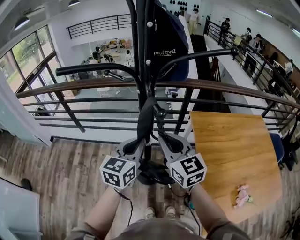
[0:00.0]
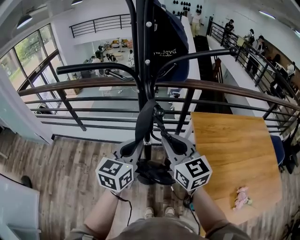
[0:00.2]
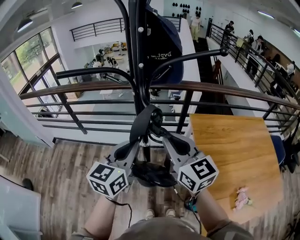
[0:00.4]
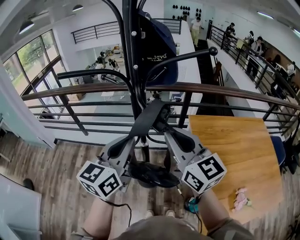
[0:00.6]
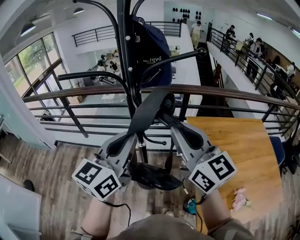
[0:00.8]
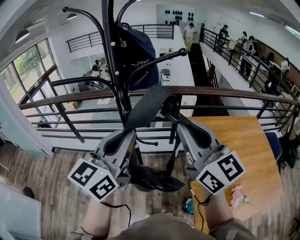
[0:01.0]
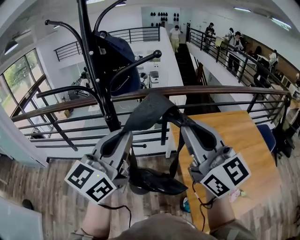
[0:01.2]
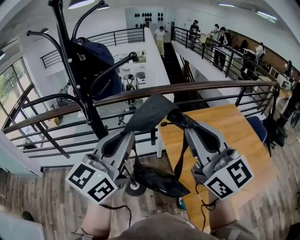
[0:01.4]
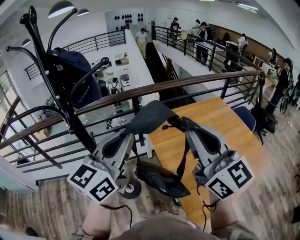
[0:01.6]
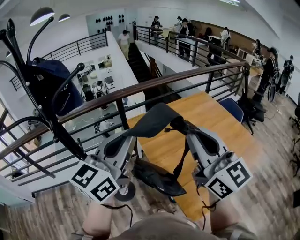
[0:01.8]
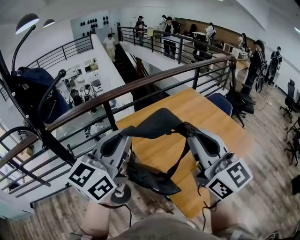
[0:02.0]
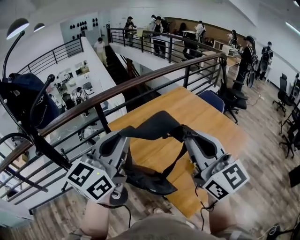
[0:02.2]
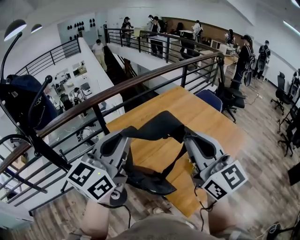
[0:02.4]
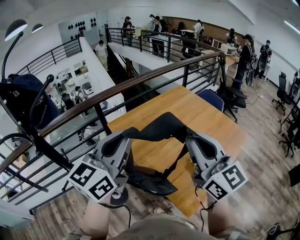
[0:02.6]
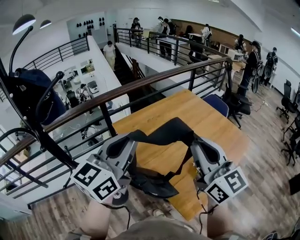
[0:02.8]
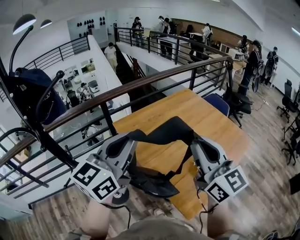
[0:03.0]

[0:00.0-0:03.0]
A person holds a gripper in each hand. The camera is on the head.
0:00.0 to 0:01.6: The right gripper moves to the right, upward and backward, roughly 35 cm, and swivels approximately 30 degrees. The left gripper shifts some 25 cm upward, to the right and backward, and swivels some 30 degrees.
0:01.6 to 0:03.0: The left gripper moves to the right, about 10 cm. The right gripper travels to the right and downward by roughly 10 cm.

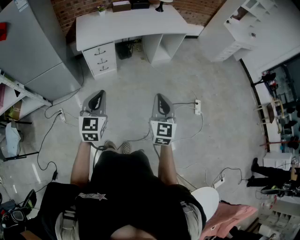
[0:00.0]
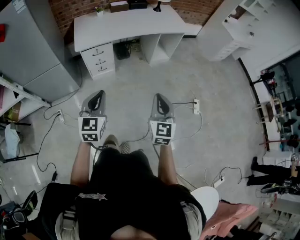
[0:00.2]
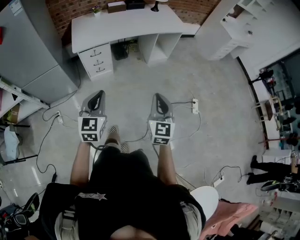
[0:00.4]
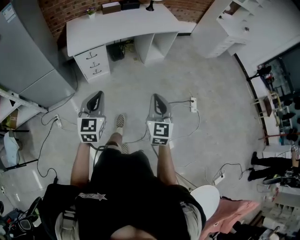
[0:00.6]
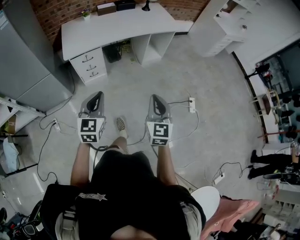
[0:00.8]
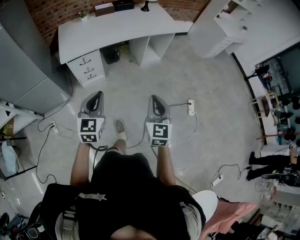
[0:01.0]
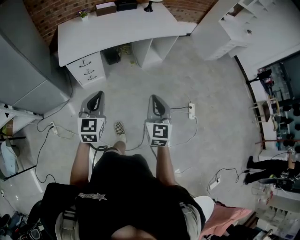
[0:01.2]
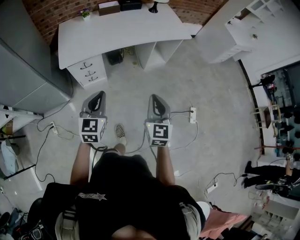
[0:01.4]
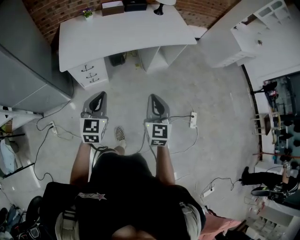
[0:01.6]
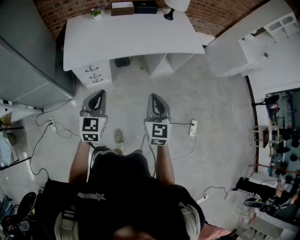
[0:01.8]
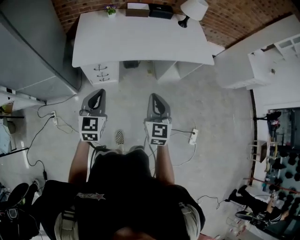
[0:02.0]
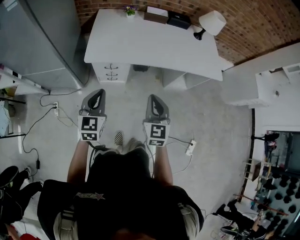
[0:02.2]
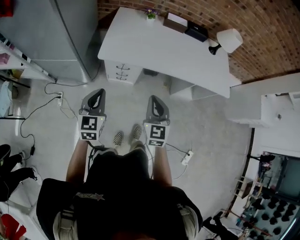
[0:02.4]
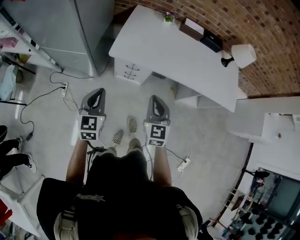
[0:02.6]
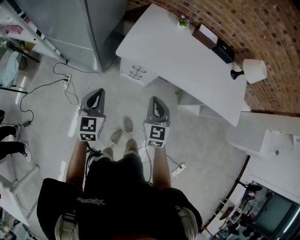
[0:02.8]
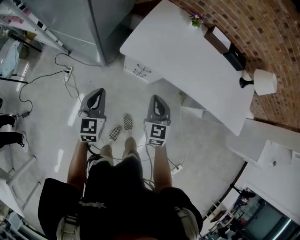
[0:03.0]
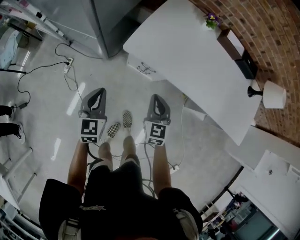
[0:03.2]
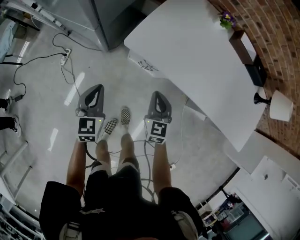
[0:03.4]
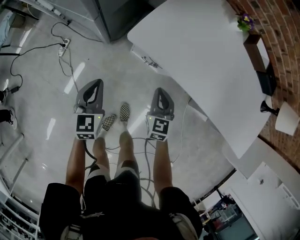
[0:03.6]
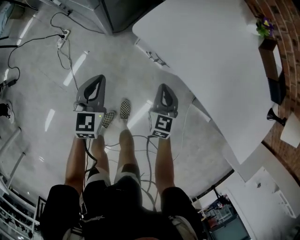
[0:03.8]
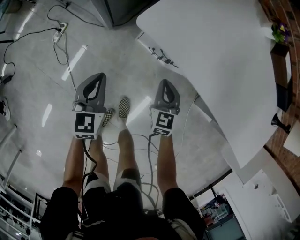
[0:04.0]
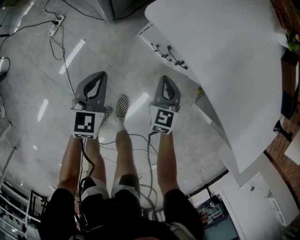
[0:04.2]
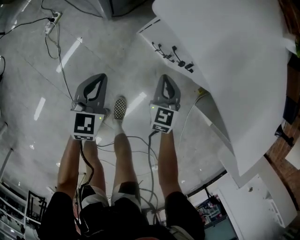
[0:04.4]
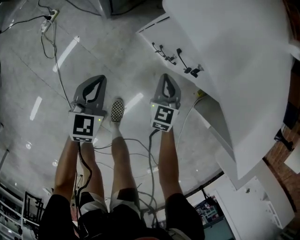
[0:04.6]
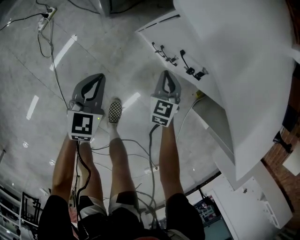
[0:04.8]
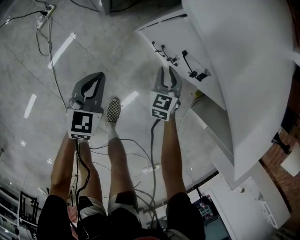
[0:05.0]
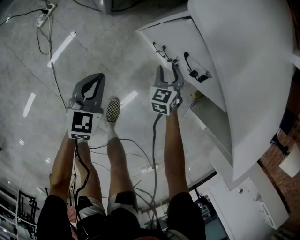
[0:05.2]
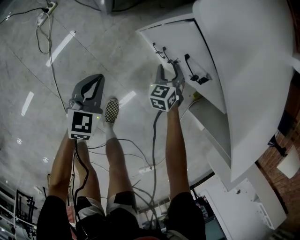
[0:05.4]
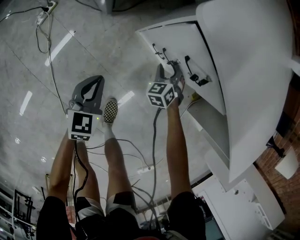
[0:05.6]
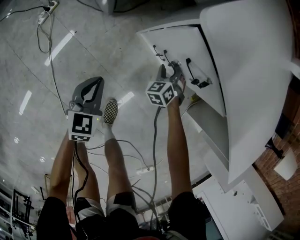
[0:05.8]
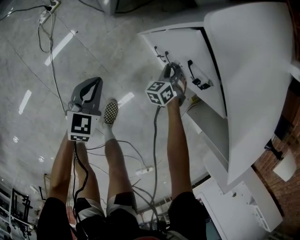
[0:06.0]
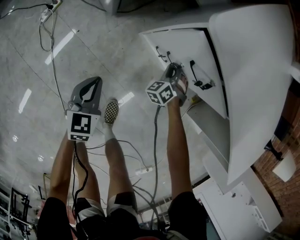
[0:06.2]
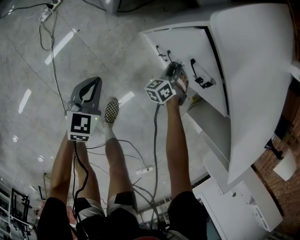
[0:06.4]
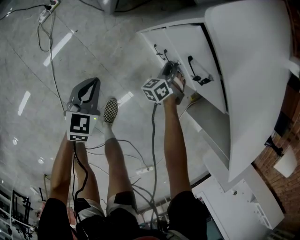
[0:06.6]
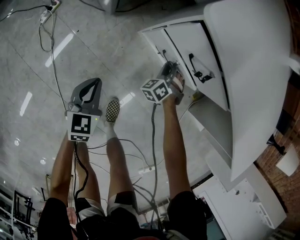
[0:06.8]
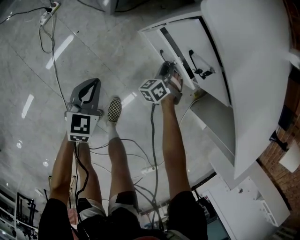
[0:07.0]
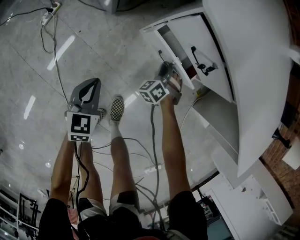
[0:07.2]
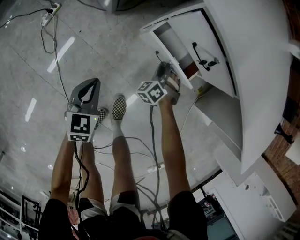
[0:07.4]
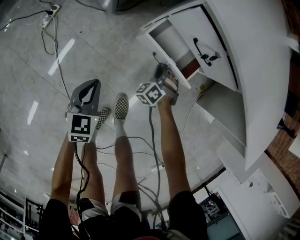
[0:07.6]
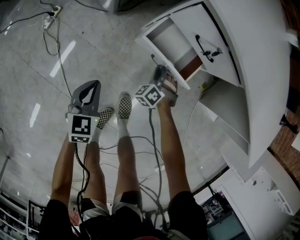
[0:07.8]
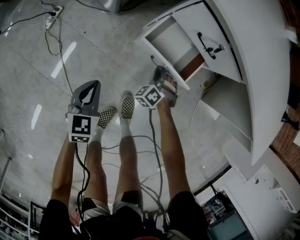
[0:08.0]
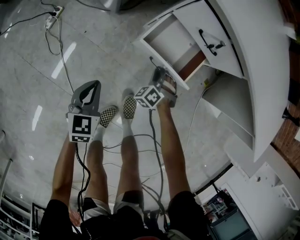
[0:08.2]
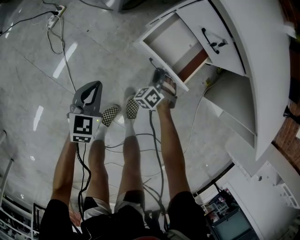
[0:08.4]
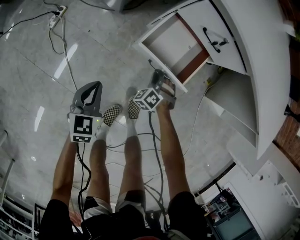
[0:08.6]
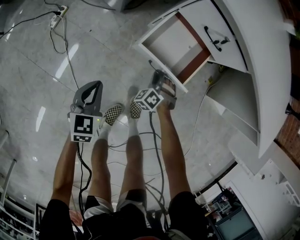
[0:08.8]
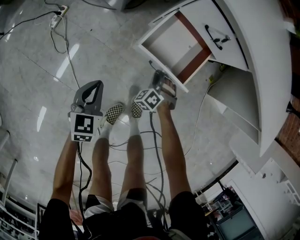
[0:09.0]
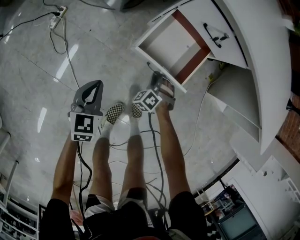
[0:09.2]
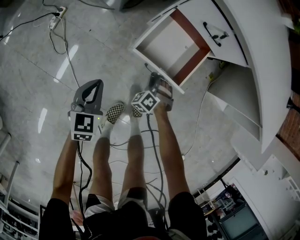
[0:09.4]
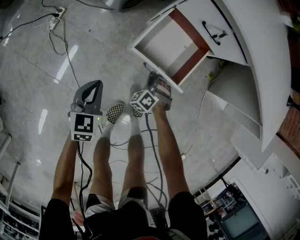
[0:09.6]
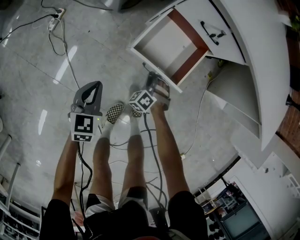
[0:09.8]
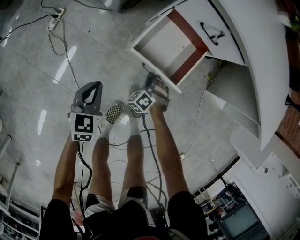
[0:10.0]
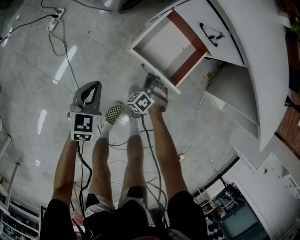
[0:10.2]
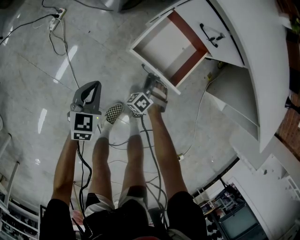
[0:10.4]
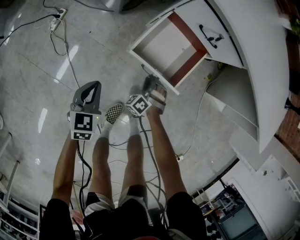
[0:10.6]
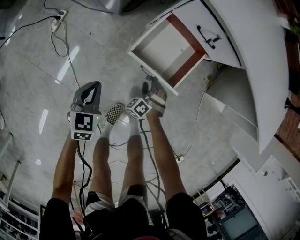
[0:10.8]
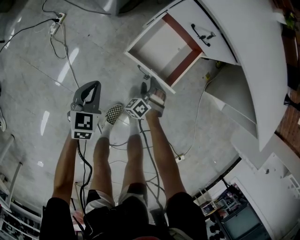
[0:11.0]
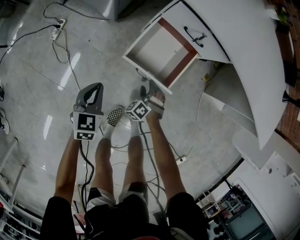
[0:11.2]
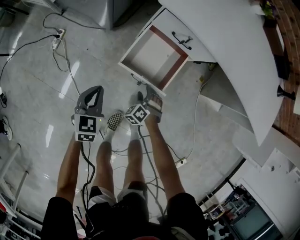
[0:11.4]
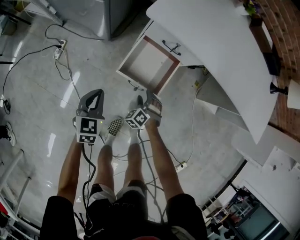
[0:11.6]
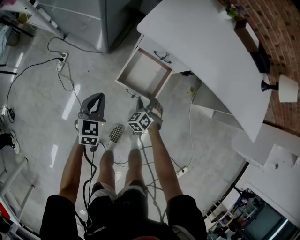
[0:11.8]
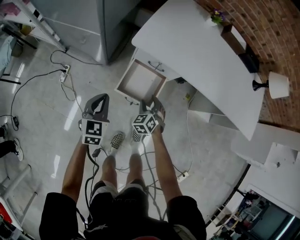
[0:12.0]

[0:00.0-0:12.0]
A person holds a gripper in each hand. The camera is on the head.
0:00.0 to 0:01.6: Both grippers travel together forward, roughly 30 cm.
0:01.6 to 0:03.0: The right gripper moves approximately 40 cm, and swivels approximately 40 degrees, while the left gripper changes place by roughly 30 cm, and rotates roughly 40 degrees.
0:03.0 to 0:04.4: Both grippers travel together downward, approximately 40 cm.
0:04.4 to 0:06.0: The left gripper moves downward, approximately 10 cm. Meanwhile the right gripper shifts some 20 cm downward and forward, rolls counterclockwise, seen from behind, by some 40 degrees, and opens, then closes once more.
0:06.0 to 0:07.6: The right gripper heads backward, covering roughly 10 cm. The left gripper heads backward, covering about 5 cm.
0:07.6 to 0:09.0: The left gripper heads backward, covering some 10 cm, while the right gripper moves backward, approximately 10 cm.
0:09.0 to 0:10.4: The grippers make only small movements.
0:10.4 to 0:12.0: Both grippers travel together upward, approximately 30 cm. The right gripper rotates about 30 degrees, and opens.

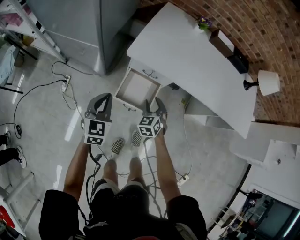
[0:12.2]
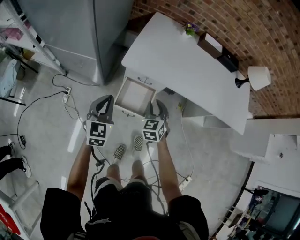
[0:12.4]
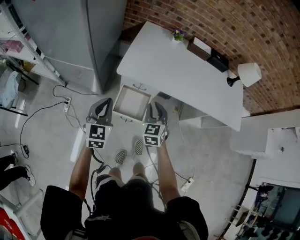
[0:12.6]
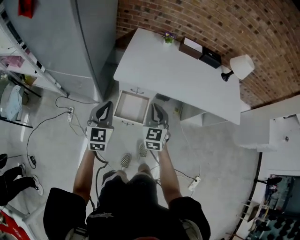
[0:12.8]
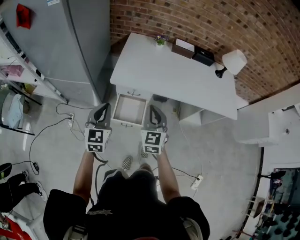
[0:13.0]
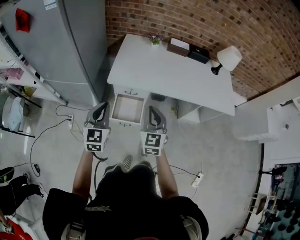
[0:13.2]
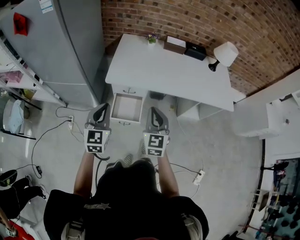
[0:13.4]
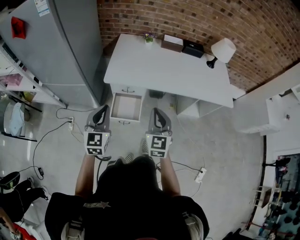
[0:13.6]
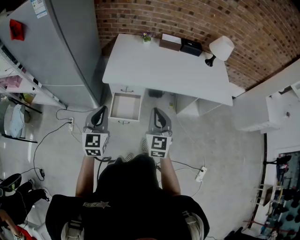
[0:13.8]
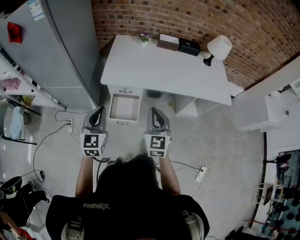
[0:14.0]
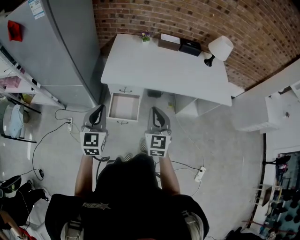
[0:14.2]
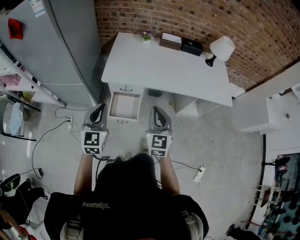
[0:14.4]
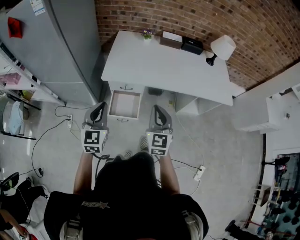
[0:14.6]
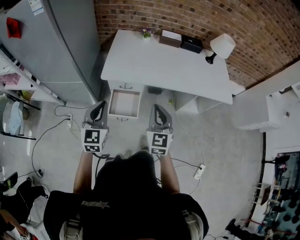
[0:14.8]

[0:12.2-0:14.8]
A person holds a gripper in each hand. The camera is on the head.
0:12.2 to 0:13.4: The left gripper heads upward and to the right, covering approximately 25 cm; the right gripper travels upward by roughly 30 cm, swivels some 40 degrees, and closes up.
0:13.4 to 0:14.8: The grippers make only small movements.

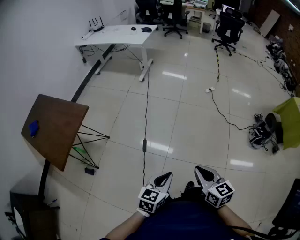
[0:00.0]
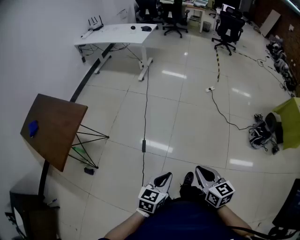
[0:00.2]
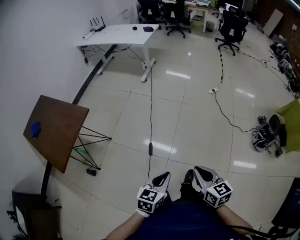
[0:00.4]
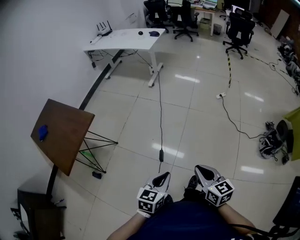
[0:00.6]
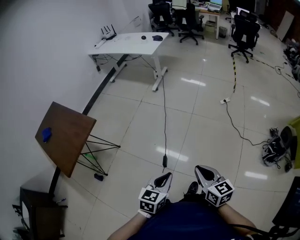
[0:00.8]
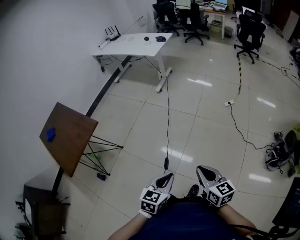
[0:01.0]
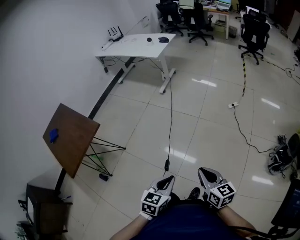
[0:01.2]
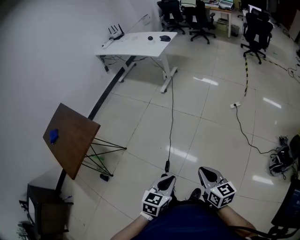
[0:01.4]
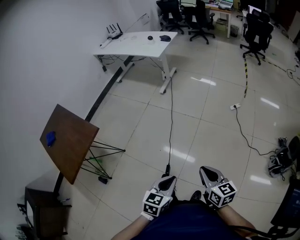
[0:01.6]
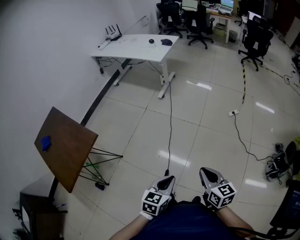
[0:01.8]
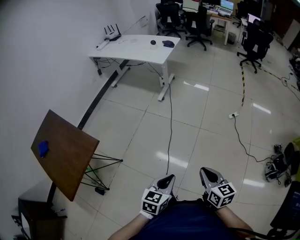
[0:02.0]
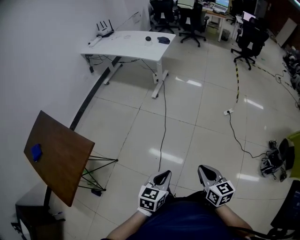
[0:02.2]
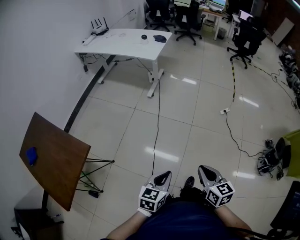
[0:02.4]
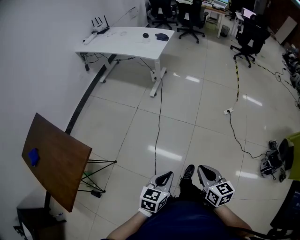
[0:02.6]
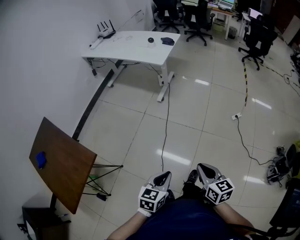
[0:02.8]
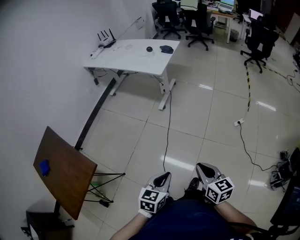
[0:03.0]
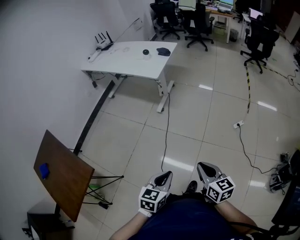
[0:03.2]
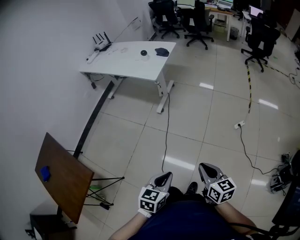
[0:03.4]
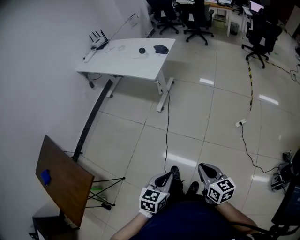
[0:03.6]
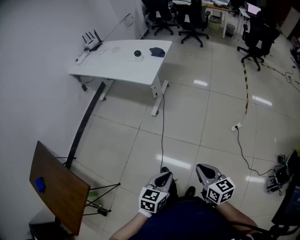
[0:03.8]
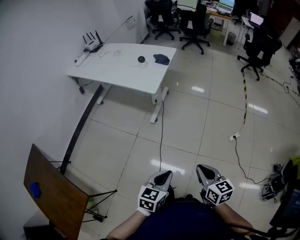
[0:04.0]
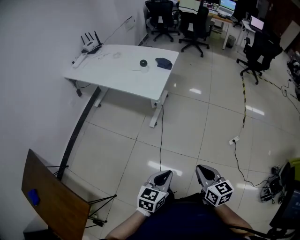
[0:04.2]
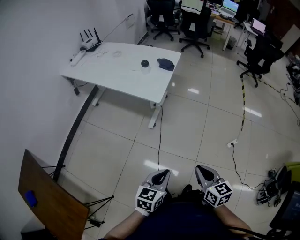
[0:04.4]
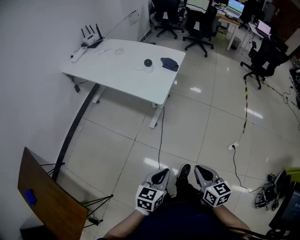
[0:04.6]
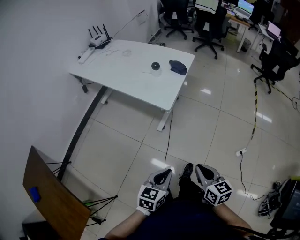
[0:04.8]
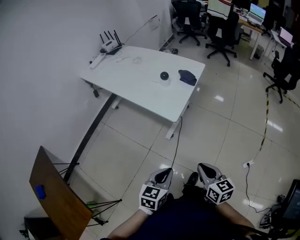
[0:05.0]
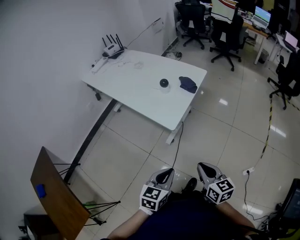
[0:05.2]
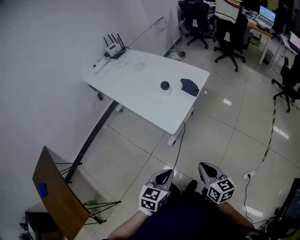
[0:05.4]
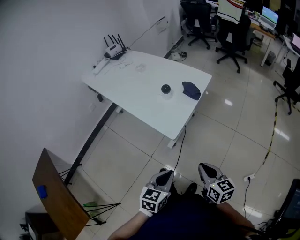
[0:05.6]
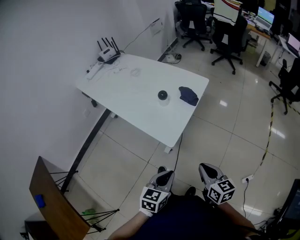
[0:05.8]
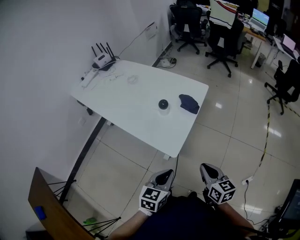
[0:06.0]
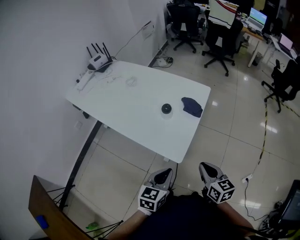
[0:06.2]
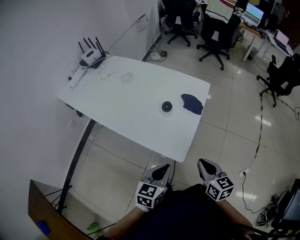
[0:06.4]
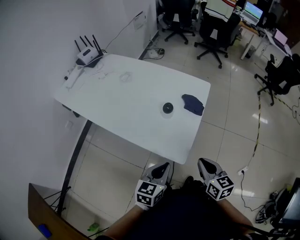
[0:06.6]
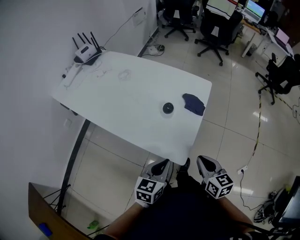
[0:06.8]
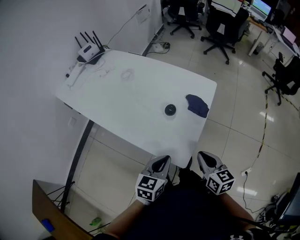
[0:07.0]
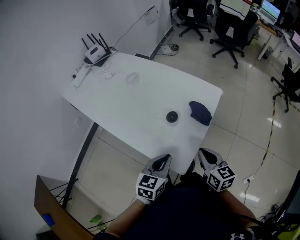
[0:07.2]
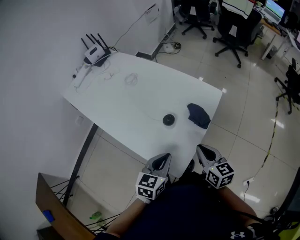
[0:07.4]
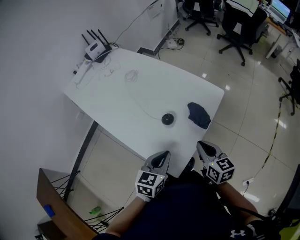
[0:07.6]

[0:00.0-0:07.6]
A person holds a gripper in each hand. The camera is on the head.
0:00.0 to 0:01.6: Both grippers travel together forward, roughly 25 cm.
0:01.6 to 0:03.0: Both grippers move forward and to the left, approximately 30 cm.
0:03.0 to 0:04.6: Both grippers move forward, some 35 cm.
0:04.6 to 0:06.0: Both grippers travel together forward, about 35 cm.
0:06.0 to 0:07.6: Both grippers move forward, some 25 cm.
